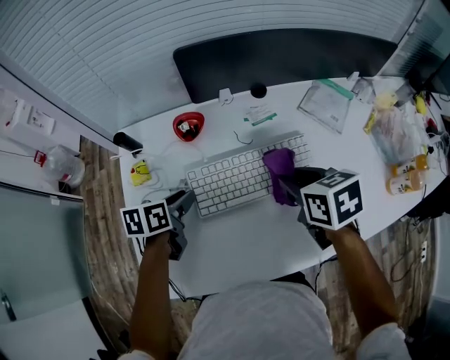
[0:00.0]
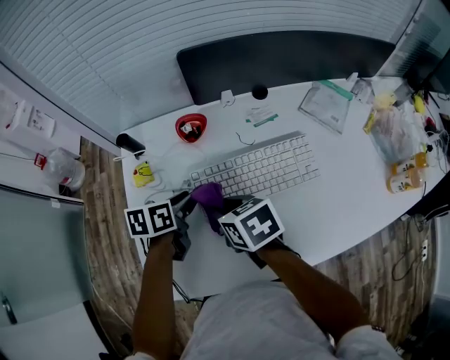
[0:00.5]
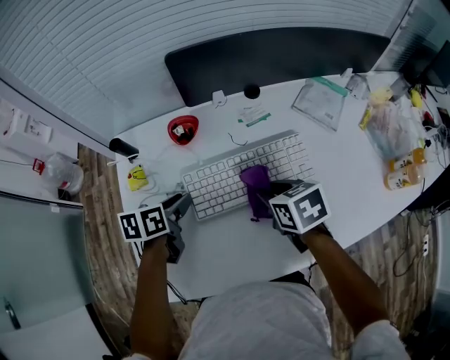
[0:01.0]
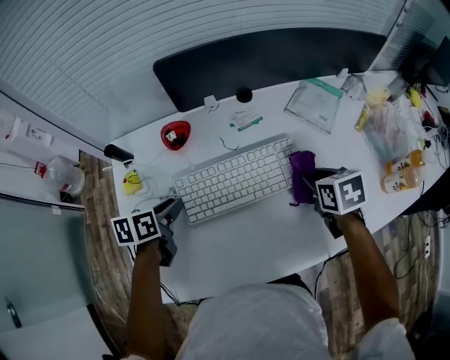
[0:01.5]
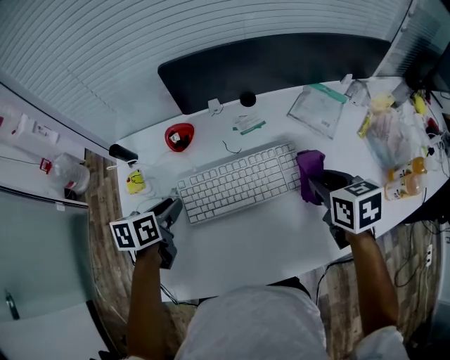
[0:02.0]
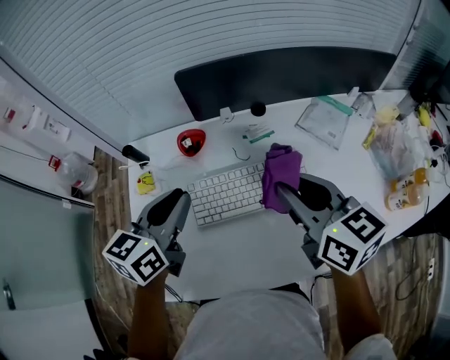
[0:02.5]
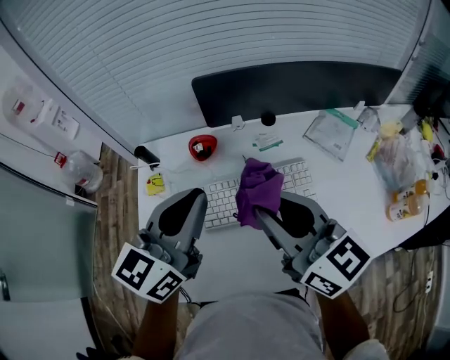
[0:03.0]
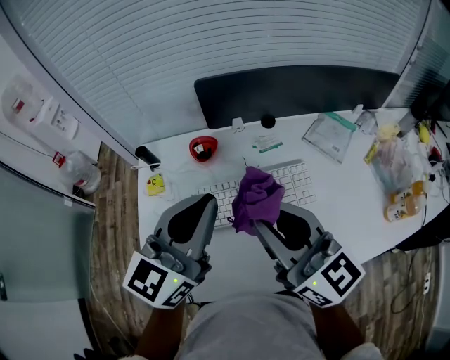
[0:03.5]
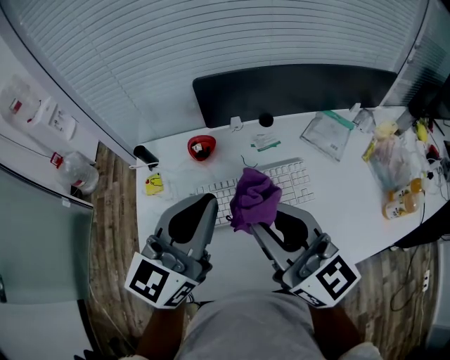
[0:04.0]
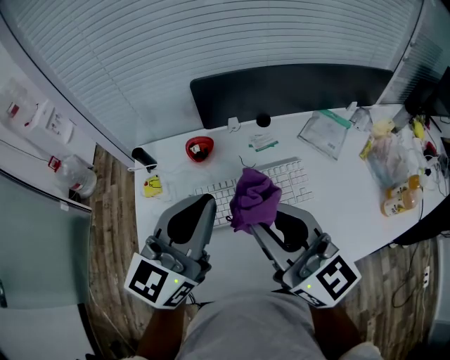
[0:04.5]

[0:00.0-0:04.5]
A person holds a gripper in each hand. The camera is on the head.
0:00.0 to 0:02.0: The right gripper is displaced to the right by approximately 10 cm.
0:02.0 to 0:04.5: The right gripper travels to the left and upward by about 25 cm, and points its fingers some 50 degrees further upward; the left gripper heads upward, covering approximately 25 cm, tilts its fingers about 50 degrees upward, and closes up.

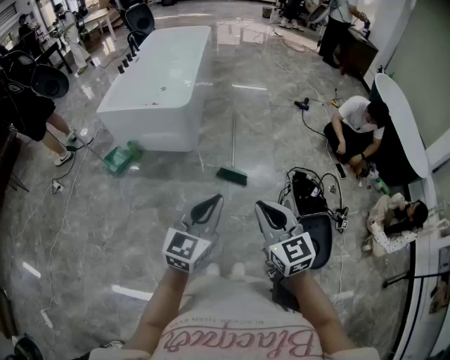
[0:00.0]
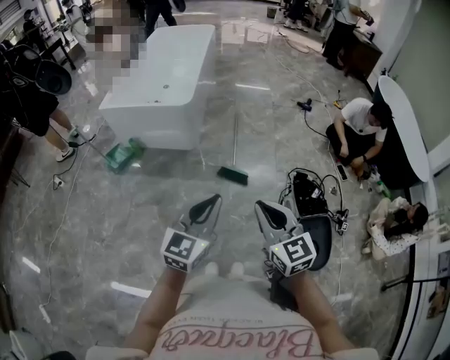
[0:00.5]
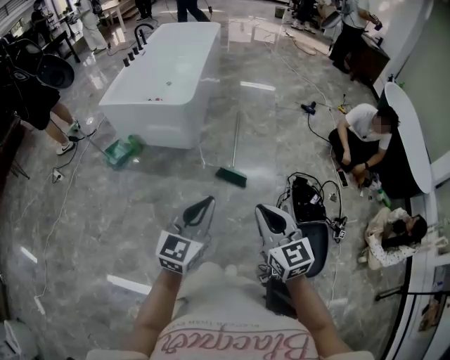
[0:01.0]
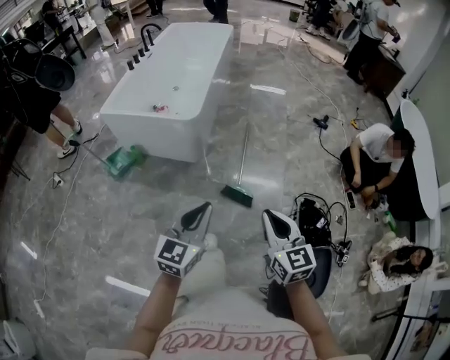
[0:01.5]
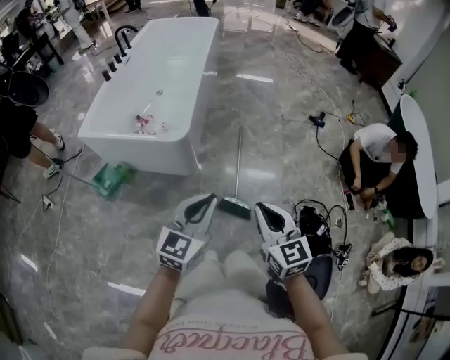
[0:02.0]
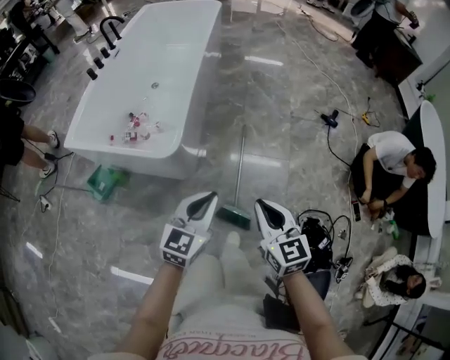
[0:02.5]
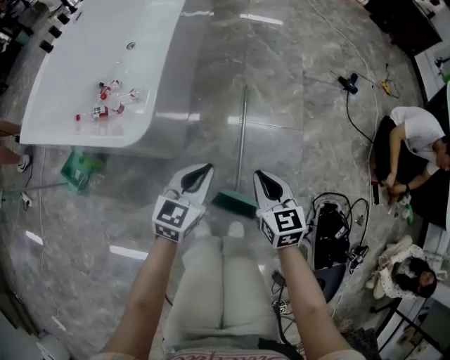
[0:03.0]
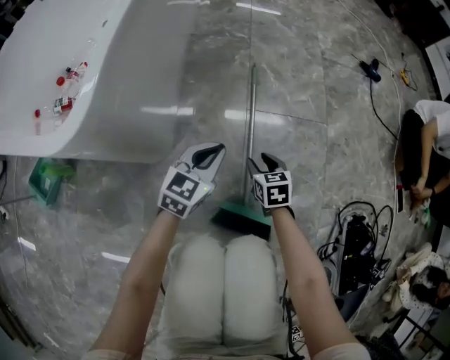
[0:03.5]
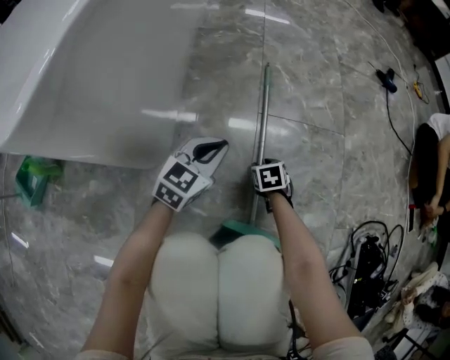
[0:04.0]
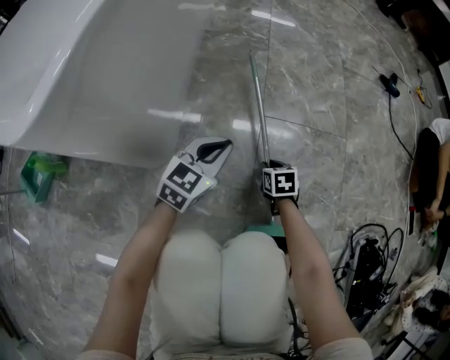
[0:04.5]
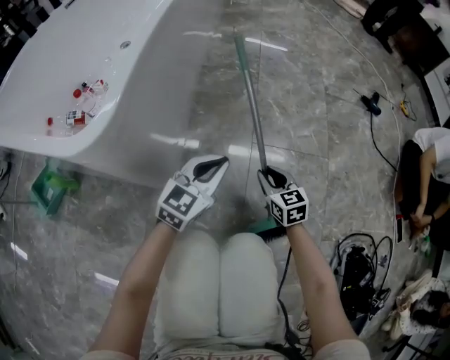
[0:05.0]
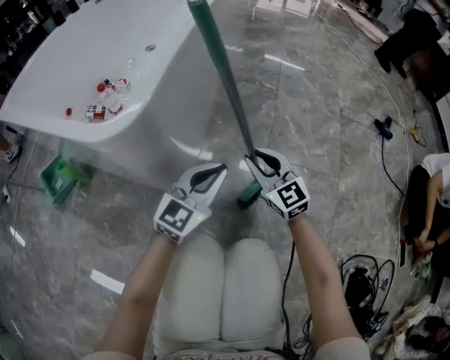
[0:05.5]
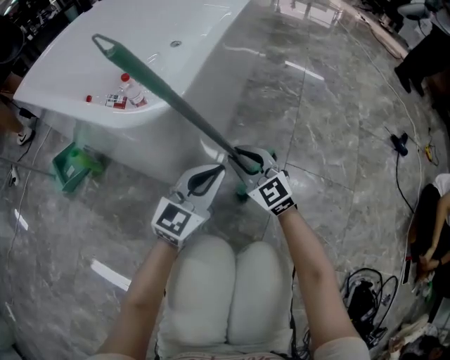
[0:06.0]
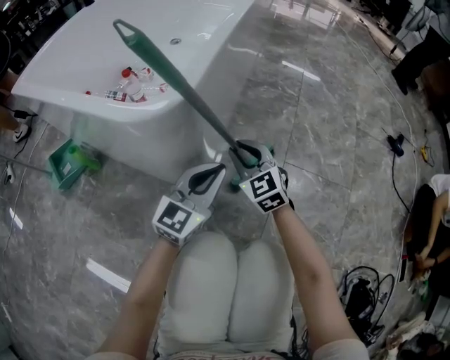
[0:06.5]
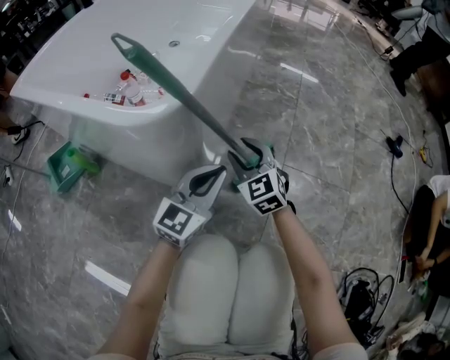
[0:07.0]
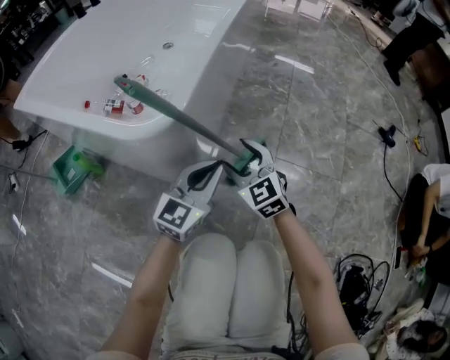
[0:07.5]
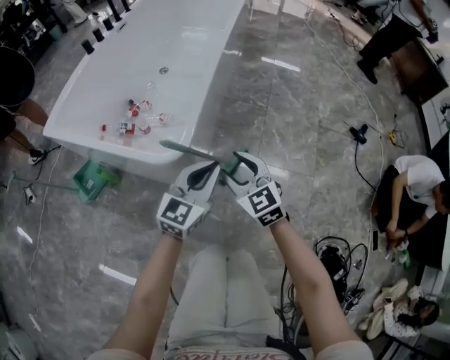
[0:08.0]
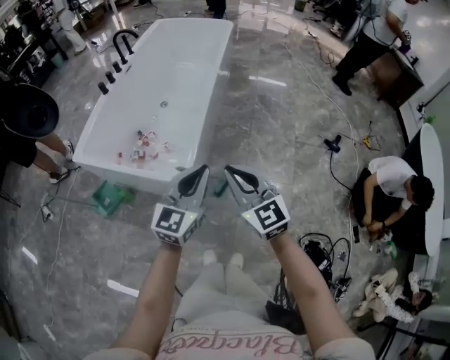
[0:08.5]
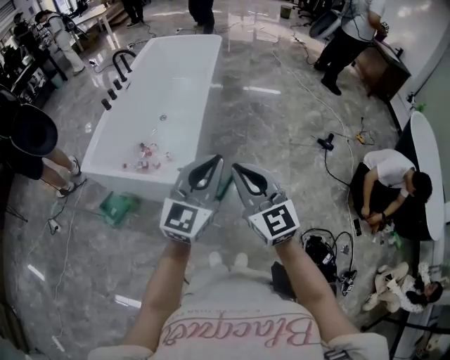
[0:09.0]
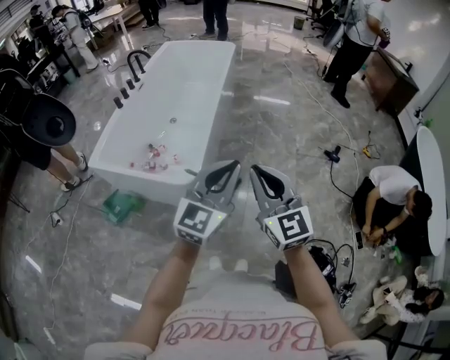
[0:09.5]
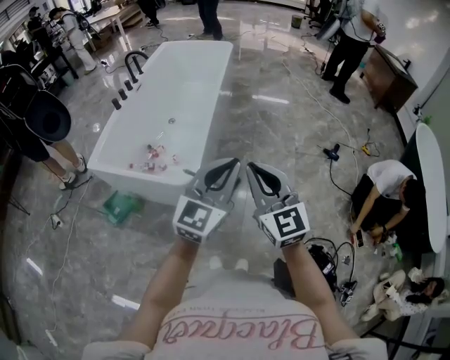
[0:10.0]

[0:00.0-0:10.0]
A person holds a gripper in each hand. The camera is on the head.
0:00.0 to 0:02.0: Both grippers travel together forward, roughly 30 cm.
0:02.0 to 0:04.0: Both grippers move downward and forward, some 80 cm. The right gripper points its fingers about 50 degrees further downward, and opens its fingers.
0:04.0 to 0:06.0: The left gripper heads upward, covering some 15 cm, and rotates some 30 degrees, while the right gripper moves upward, approximately 30 cm, and tilts its fingers about 50 degrees upward.
0:06.0 to 0:08.0: Both grippers move upward, approximately 25 cm. The right gripper opens.
0:08.0 to 0:10.0: The two grippers go some 35 cm upward. The right gripper changes its angle by roughly 20 degrees, and closes its fingers.

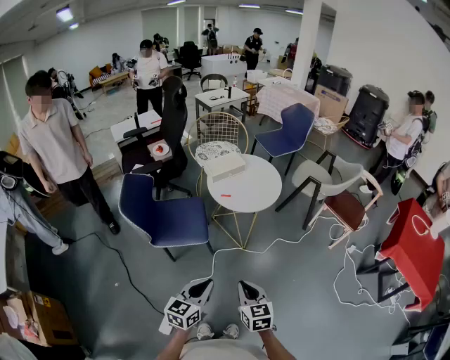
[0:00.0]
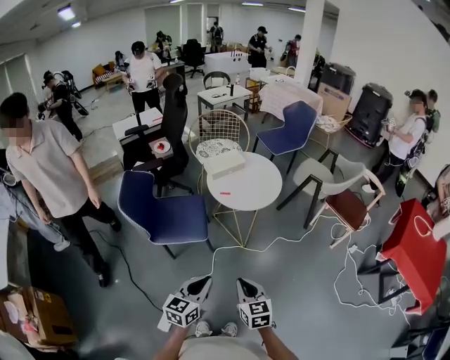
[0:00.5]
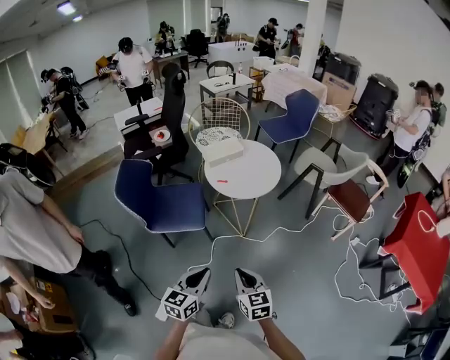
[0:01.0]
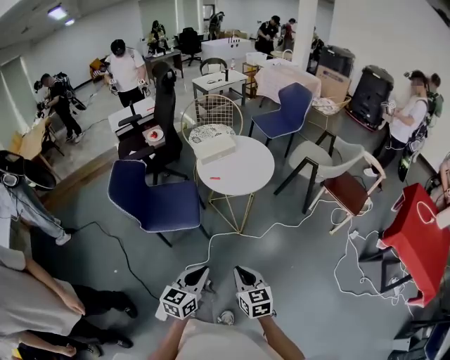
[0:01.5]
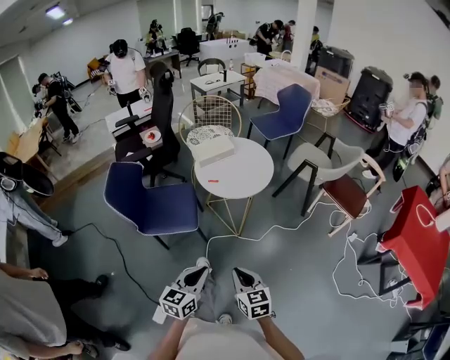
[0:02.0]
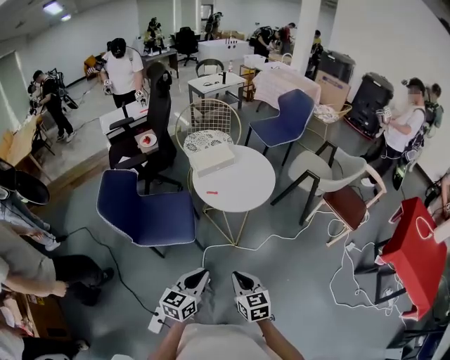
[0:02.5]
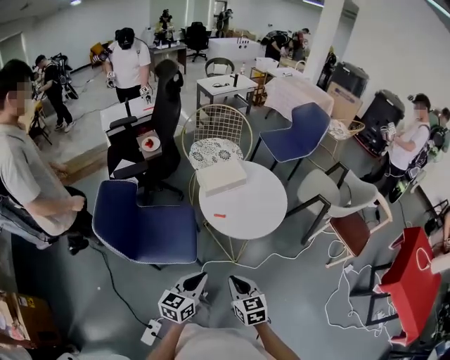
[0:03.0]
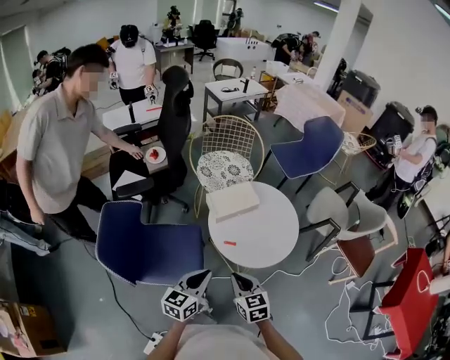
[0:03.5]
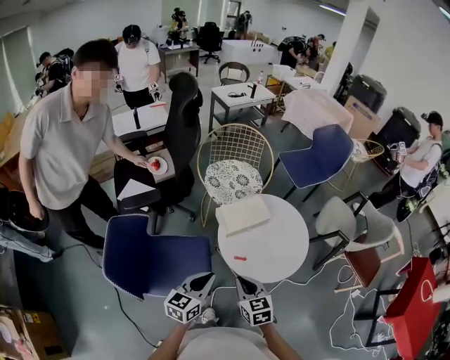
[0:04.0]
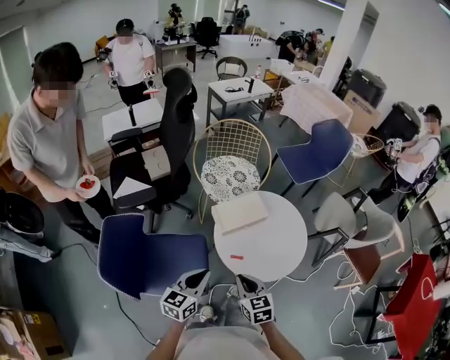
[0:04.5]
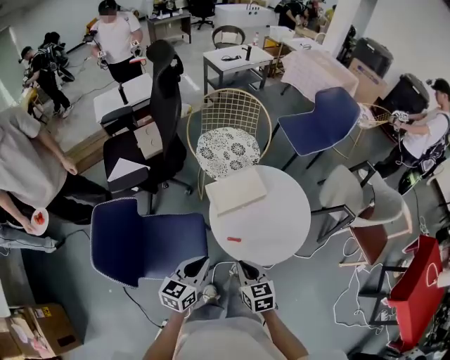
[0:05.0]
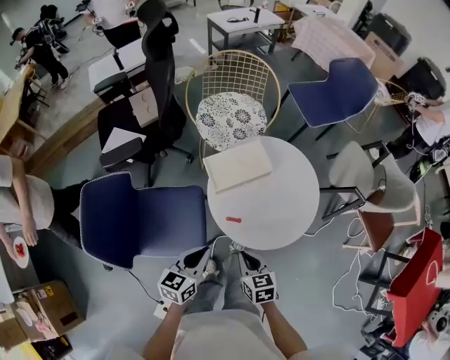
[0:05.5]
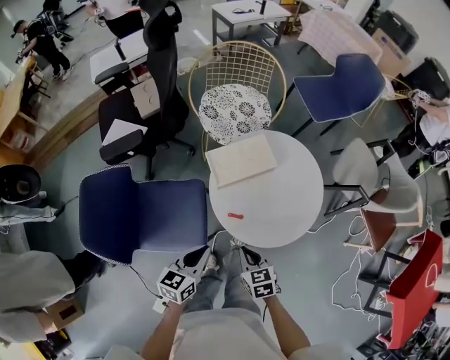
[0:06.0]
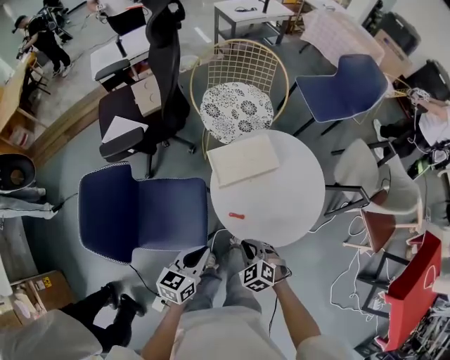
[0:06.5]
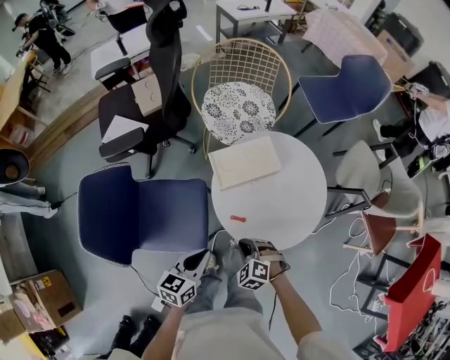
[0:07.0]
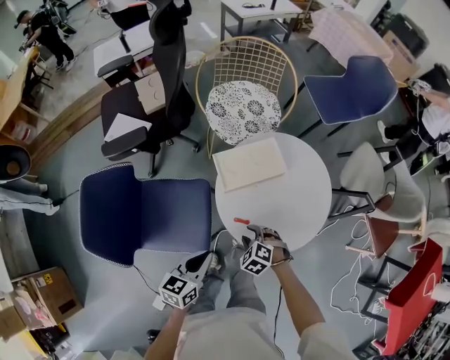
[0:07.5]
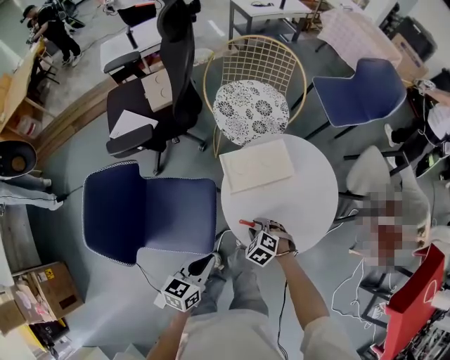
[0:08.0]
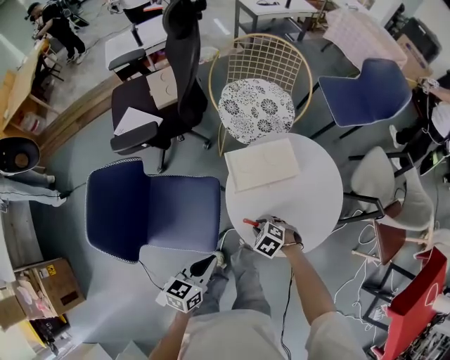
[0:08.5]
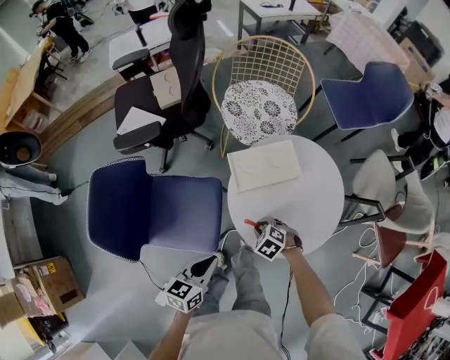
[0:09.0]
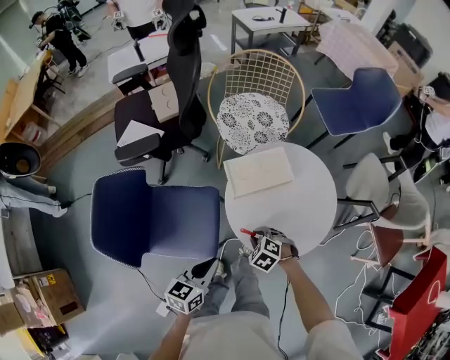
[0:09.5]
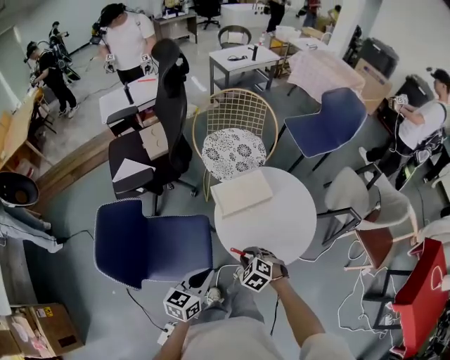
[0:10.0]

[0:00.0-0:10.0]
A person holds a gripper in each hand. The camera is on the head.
0:00.0 to 0:02.0: The right gripper shifts by some 5 cm, while the left gripper heads to the right, covering some 5 cm.
0:02.0 to 0:04.0: Both grippers are carried forward, approximately 40 cm.
0:04.0 to 0:06.0: The left gripper moves downward, some 10 cm. Meanwhile the right gripper is displaced downward and to the right by some 15 cm.
0:06.0 to 0:08.0: The right gripper travels forward and downward by approximately 15 cm, twists roughly 50 degrees counterclockwise, seen from behind, and opens its fingers.
0:08.0 to 0:10.0: The left gripper shifts approximately 5 cm upward. Meanwhile the right gripper heads upward, covering some 10 cm.

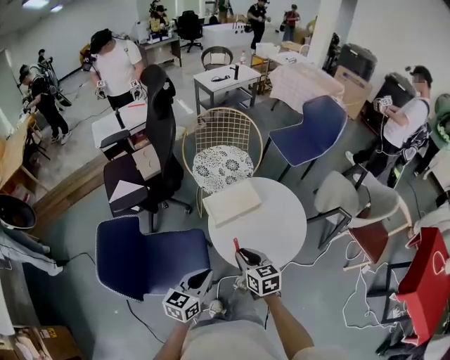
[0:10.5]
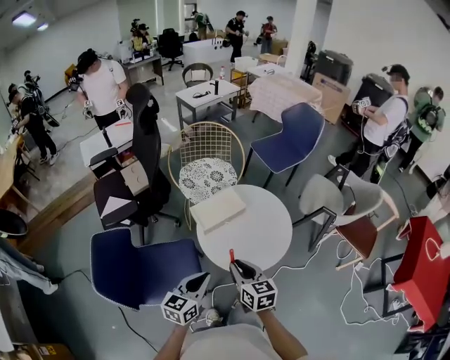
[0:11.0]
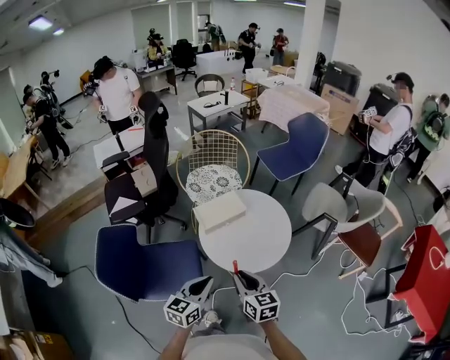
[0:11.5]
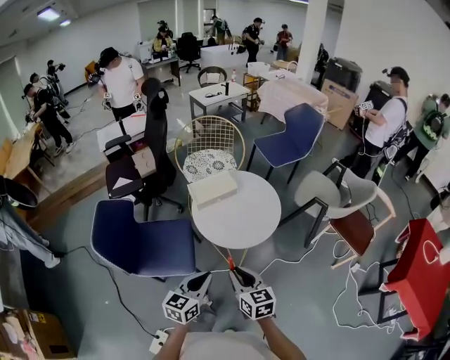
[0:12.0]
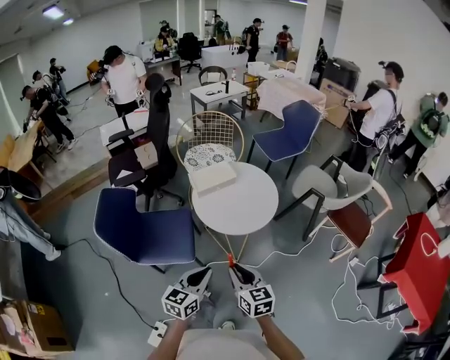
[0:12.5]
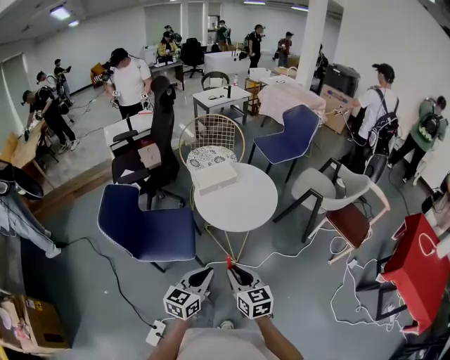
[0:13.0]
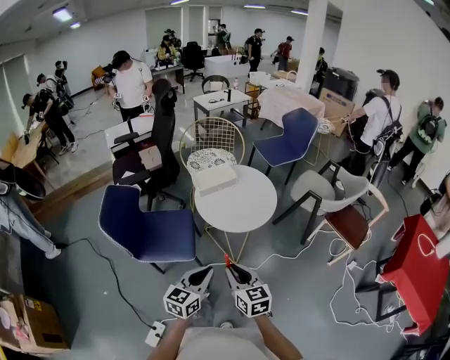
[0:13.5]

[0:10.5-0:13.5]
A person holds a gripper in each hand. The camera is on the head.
0:10.5 to 0:12.0: Both grippers travel together backward and to the right, about 20 cm.
0:12.0 to 0:13.5: The grippers both shift backward by some 10 cm.
